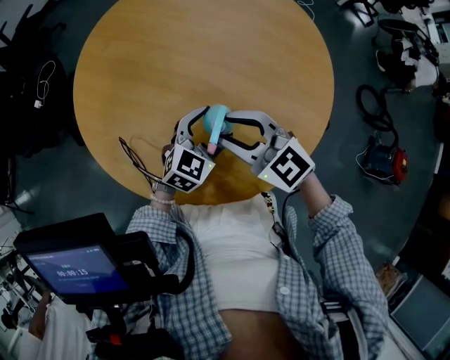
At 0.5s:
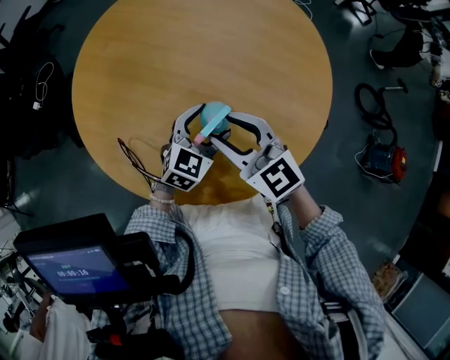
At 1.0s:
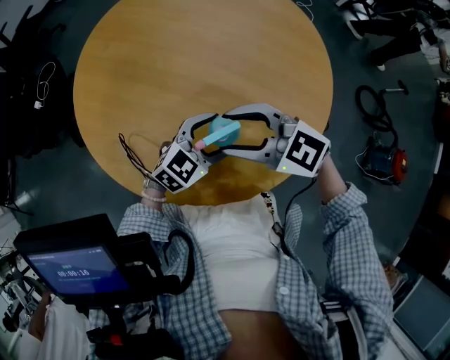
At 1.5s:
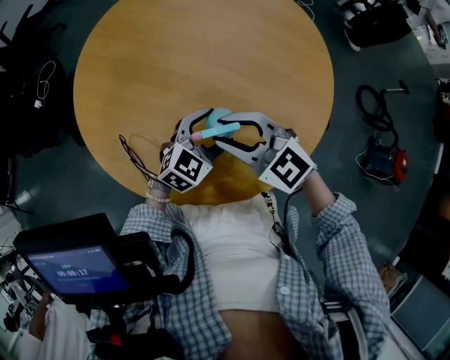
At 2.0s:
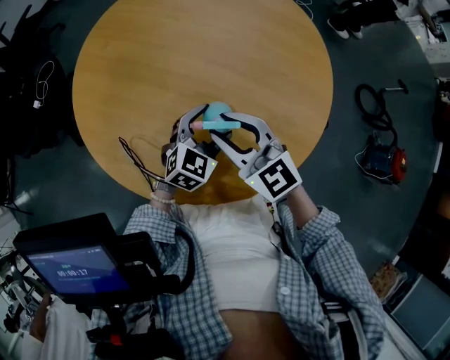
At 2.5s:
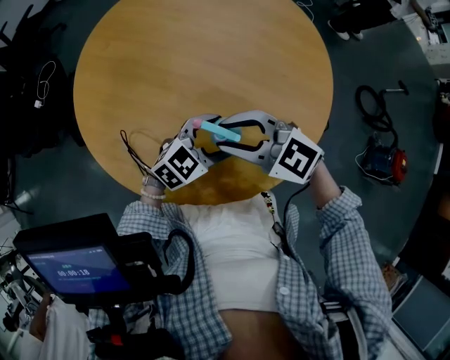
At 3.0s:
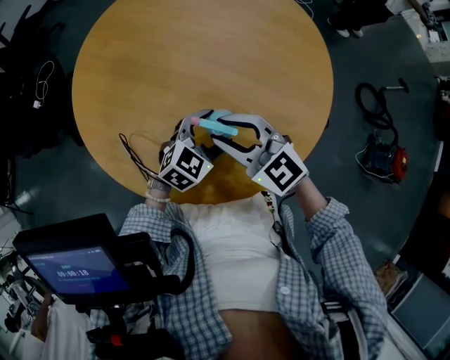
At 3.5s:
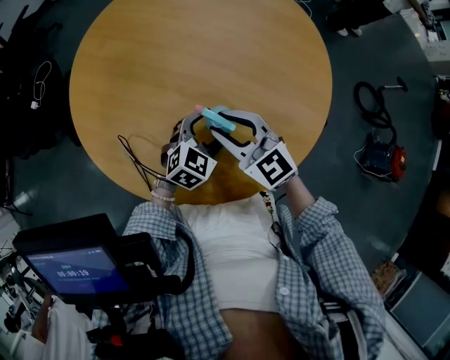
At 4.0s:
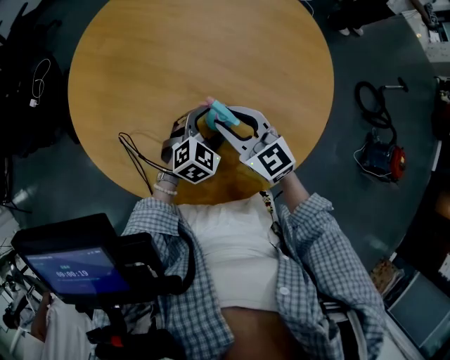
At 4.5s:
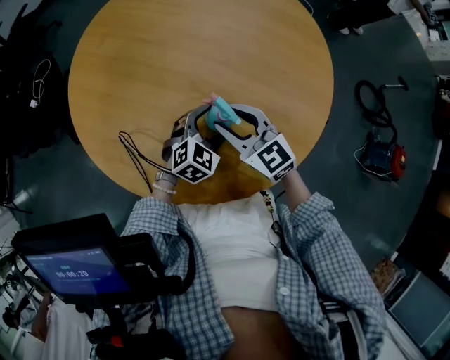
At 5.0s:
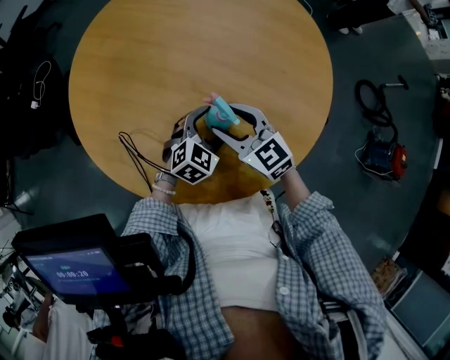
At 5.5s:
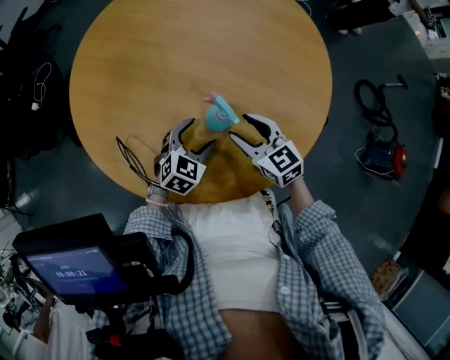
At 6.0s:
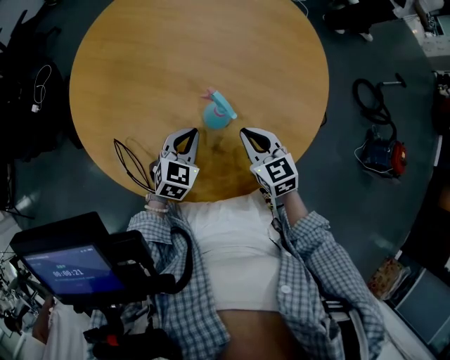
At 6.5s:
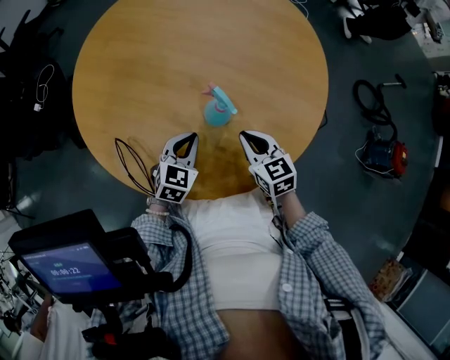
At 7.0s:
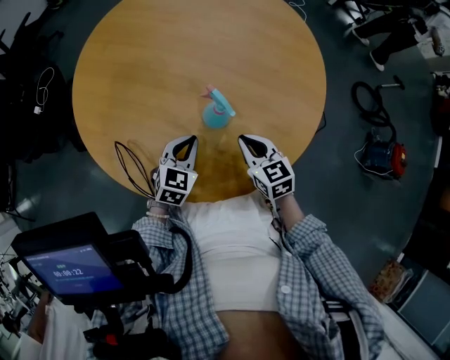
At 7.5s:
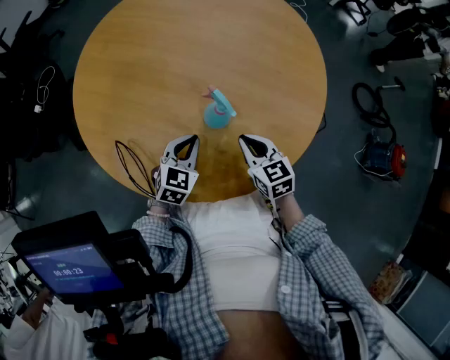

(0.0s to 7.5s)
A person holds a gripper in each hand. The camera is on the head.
0.0s - 2.0s: The right gripper opens, then closes again.
2.0s - 4.0s: The right gripper travels downward by about 5 cm. Meanwhile the left gripper moves some 5 cm.
4.0s - 5.5s: The right gripper is displaced downward and to the right by approximately 10 cm, and opens up. Meanwhile the left gripper ends up approximately 5 cm from where it was.
5.5s - 7.5s: The right gripper closes its fingers. The left gripper closes its fingers.

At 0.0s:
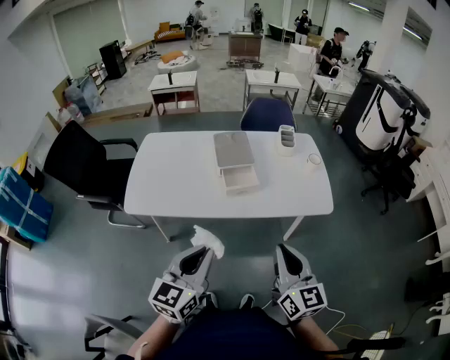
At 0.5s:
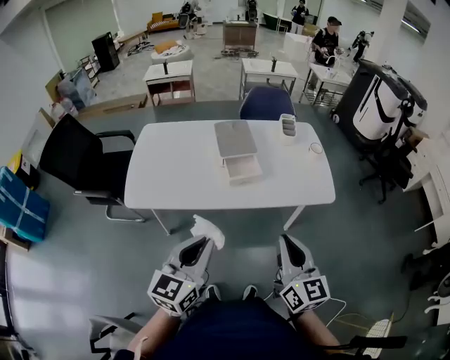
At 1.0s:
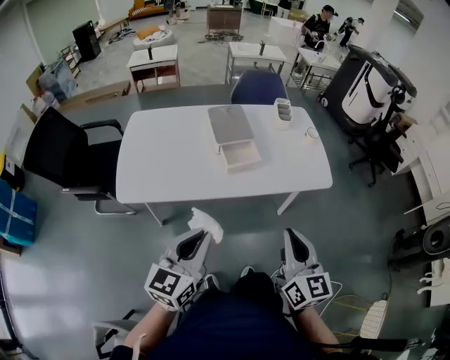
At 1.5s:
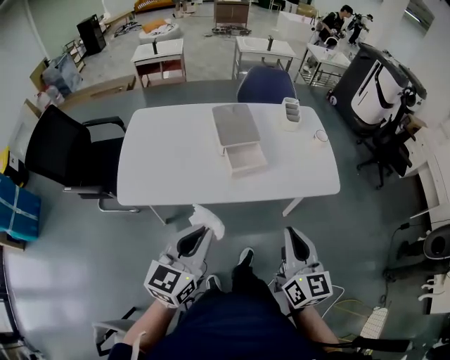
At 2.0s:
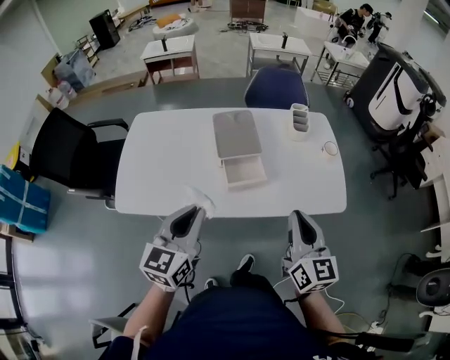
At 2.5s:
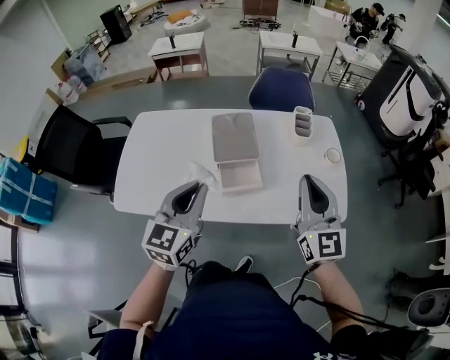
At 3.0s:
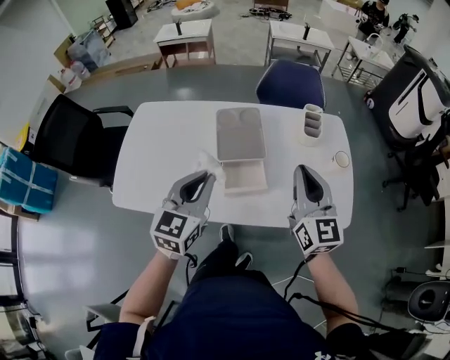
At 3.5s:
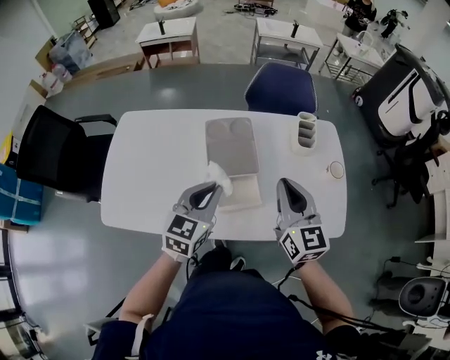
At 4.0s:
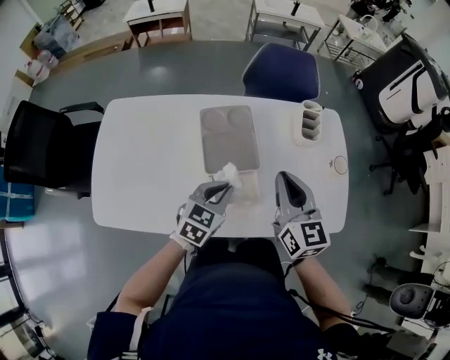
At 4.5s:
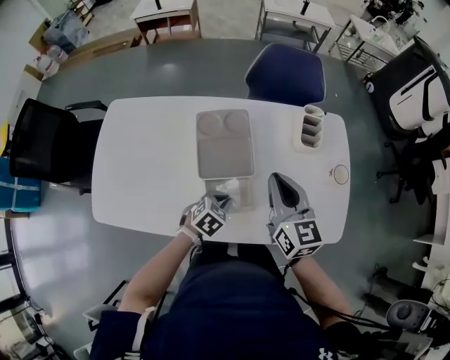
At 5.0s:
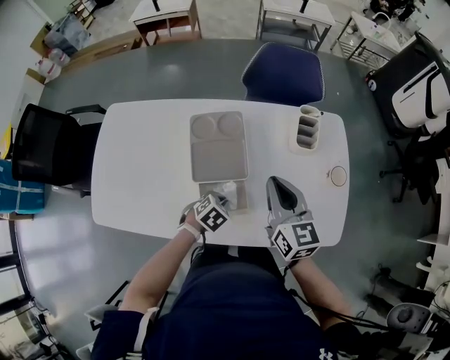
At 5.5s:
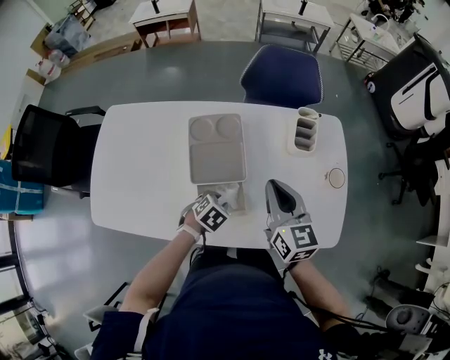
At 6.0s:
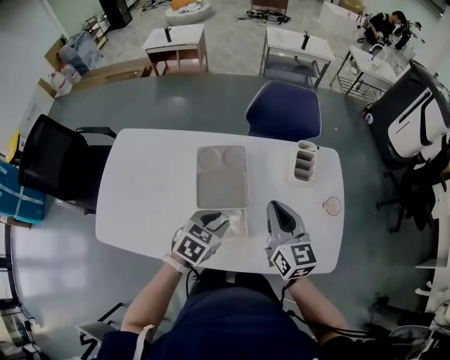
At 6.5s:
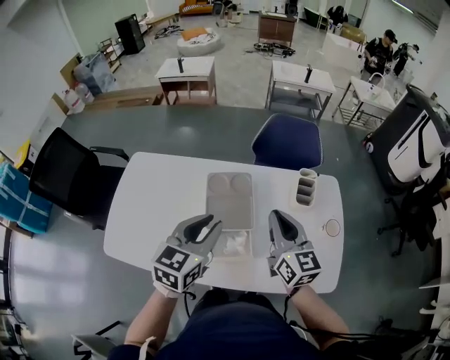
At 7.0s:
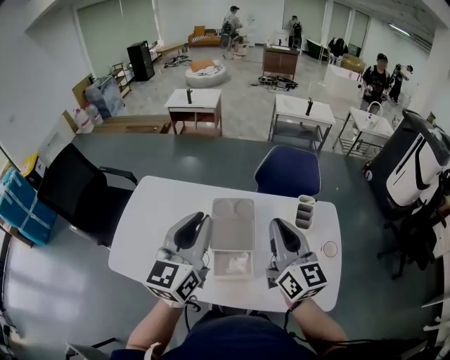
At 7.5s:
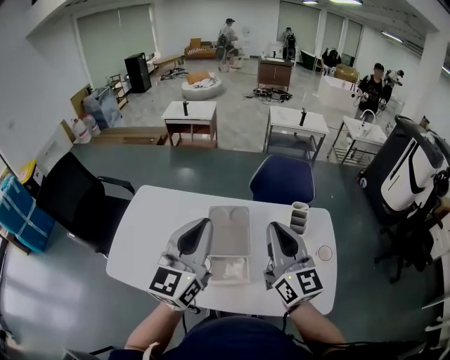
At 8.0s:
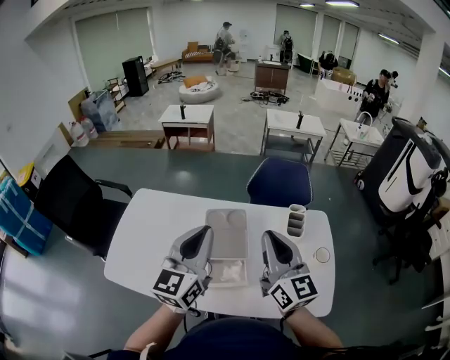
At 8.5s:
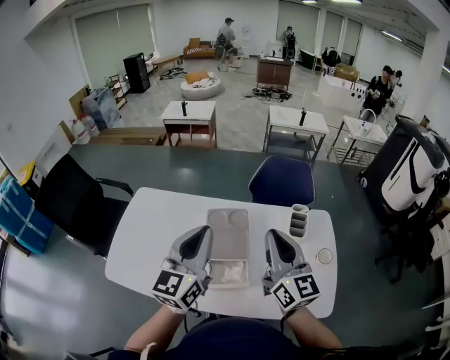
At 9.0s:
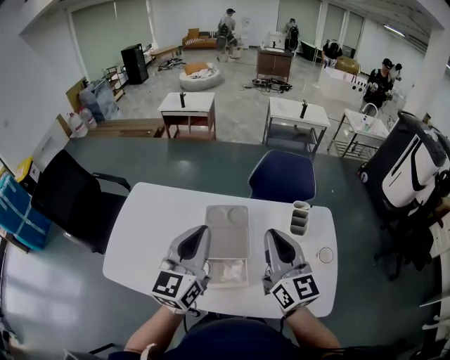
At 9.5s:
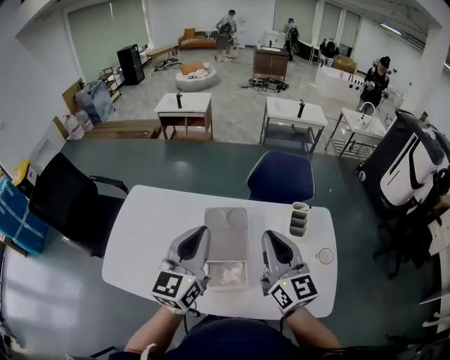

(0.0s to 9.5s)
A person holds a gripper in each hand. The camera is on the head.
0.0s - 2.0s: Both grippers move forward, some 20 cm.
2.0s - 4.0s: The left gripper is displaced forward and downward by about 30 cm, and turns by some 30 degrees, while the right gripper goes roughly 25 cm forward.
4.0s - 5.5s: The right gripper moves about 5 cm. Meanwhile the left gripper moves downward, approximately 15 cm, tilts its fingers about 40 degrees downward, and opens.
5.5s - 7.5s: The right gripper heads upward, covering roughly 20 cm, and swivels roughly 30 degrees. The left gripper goes some 50 cm upward, angles its fingers upward, by approximately 80 degrees, and closes.
7.5s - 9.5s: The left gripper travels downward and forward by roughly 10 cm, while the right gripper changes place by some 5 cm.

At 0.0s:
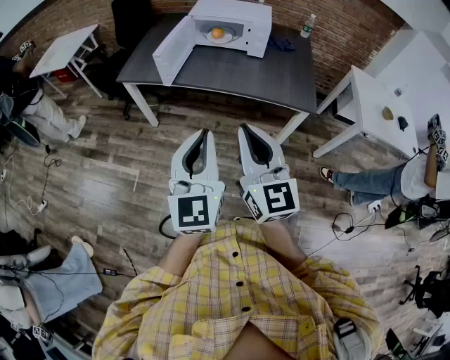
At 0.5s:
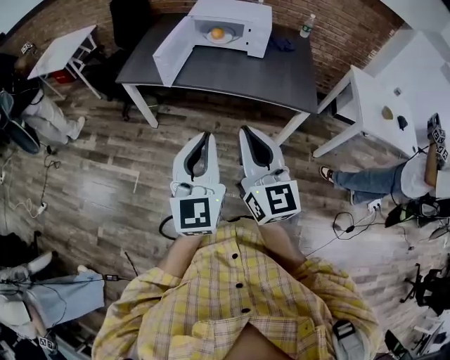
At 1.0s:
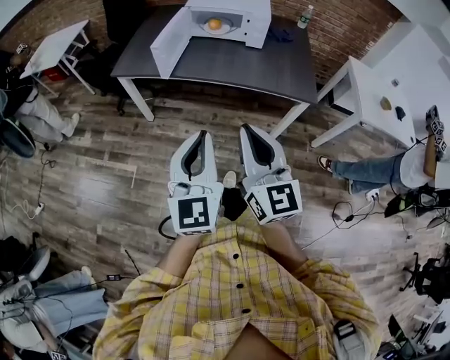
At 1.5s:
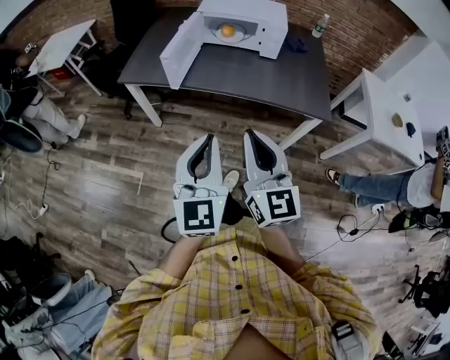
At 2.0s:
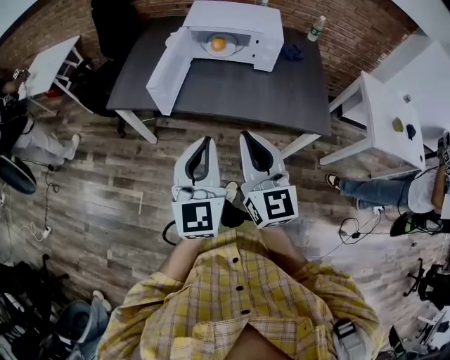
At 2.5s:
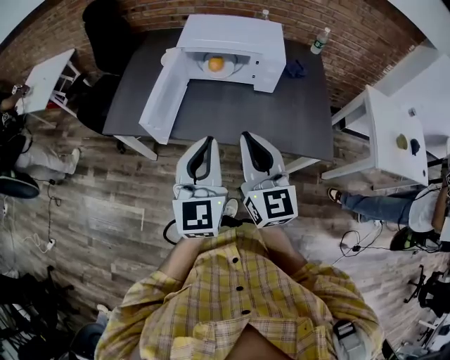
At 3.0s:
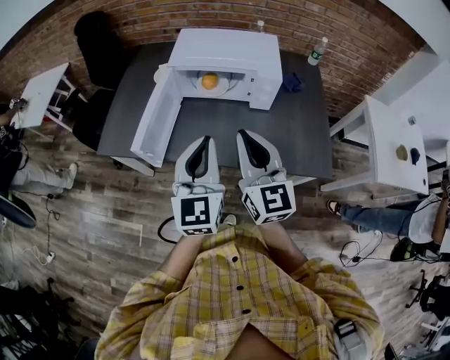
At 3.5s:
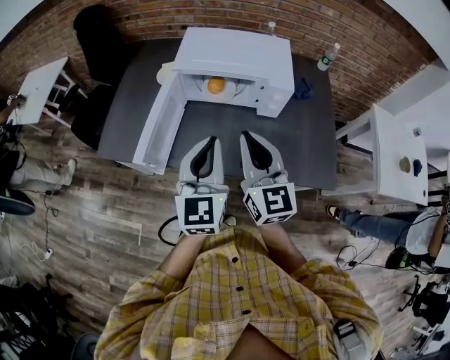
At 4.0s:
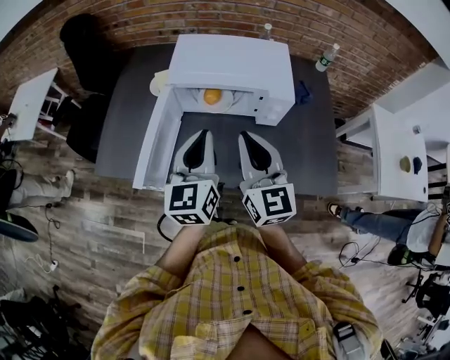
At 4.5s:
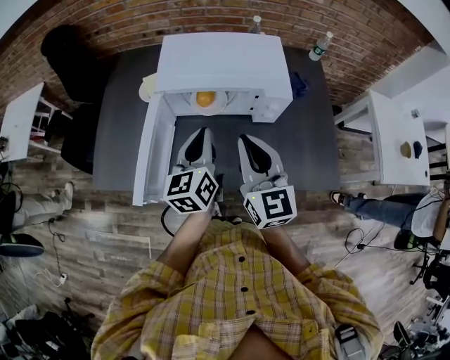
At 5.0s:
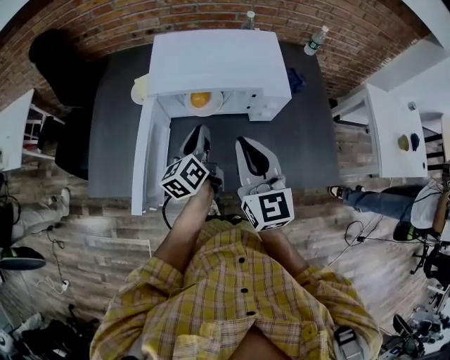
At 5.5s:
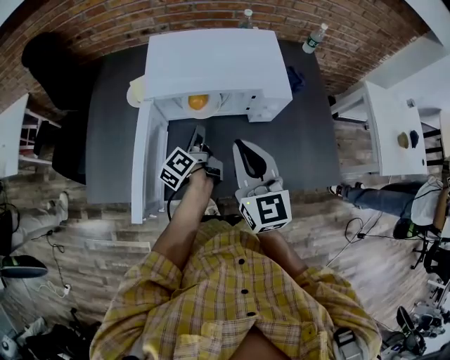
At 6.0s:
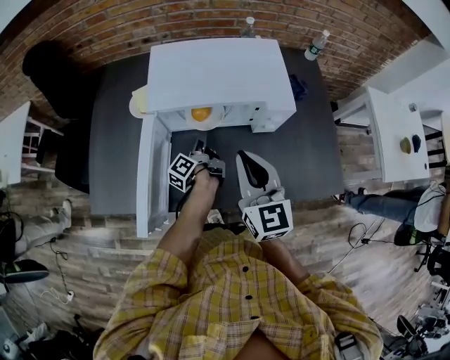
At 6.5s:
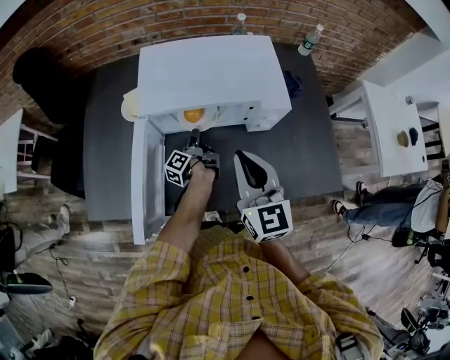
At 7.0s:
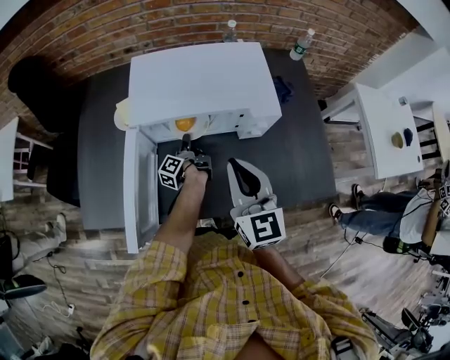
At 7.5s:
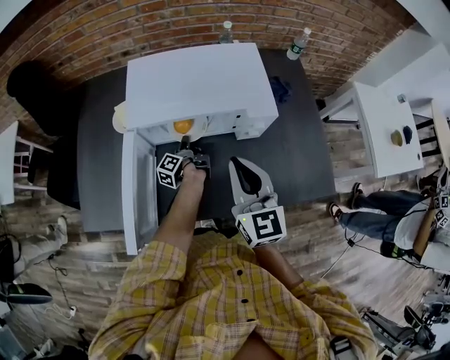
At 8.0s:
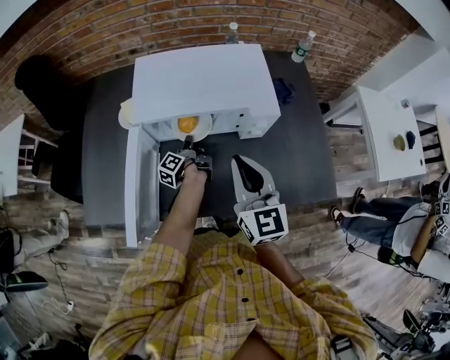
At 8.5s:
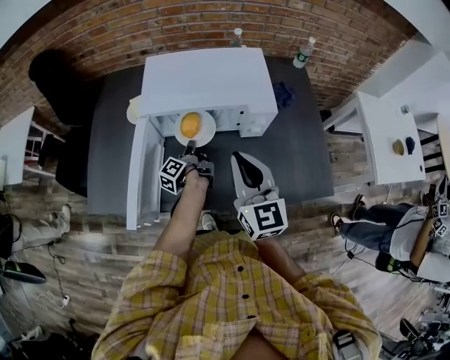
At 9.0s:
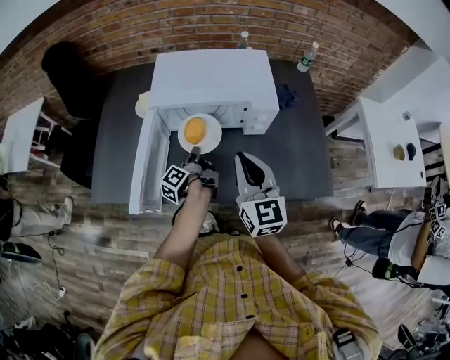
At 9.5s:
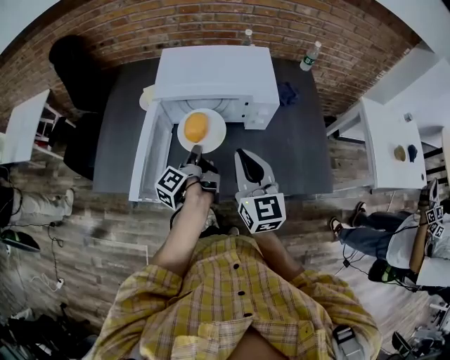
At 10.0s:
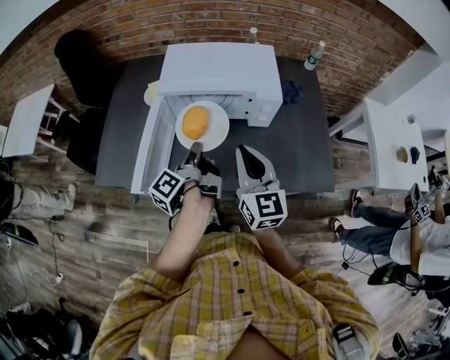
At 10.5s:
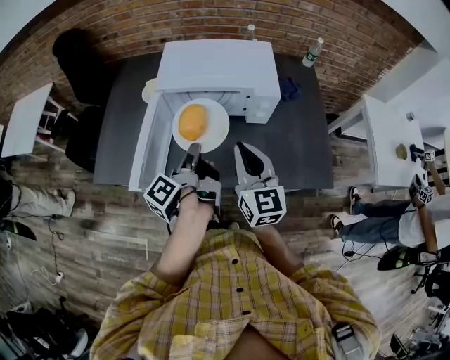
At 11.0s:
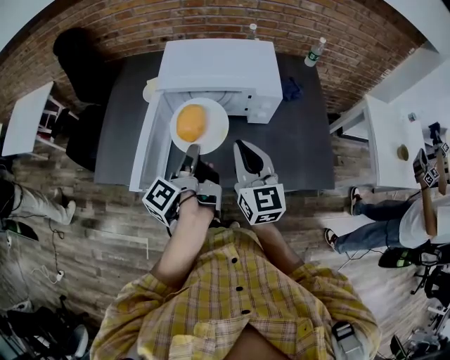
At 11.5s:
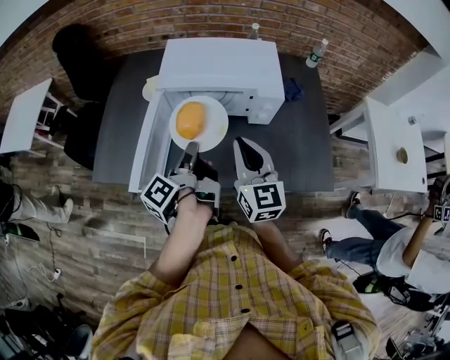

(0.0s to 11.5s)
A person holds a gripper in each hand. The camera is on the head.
0.0s - 2.0s: Both grippers travel together forward, some 20 cm.
2.0s - 4.0s: The two grippers go some 35 cm forward.
4.0s - 6.0s: The right gripper moves downward and forward, approximately 10 cm; the left gripper heads downward and forward, covering about 35 cm, rolls counterclockwise, seen from behind, by some 70 degrees, and opens up.
6.0s - 7.5s: The left gripper moves downward and forward, about 5 cm, and closes its fingers.
7.5s - 9.5s: The left gripper is displaced backward and upward by approximately 25 cm. Meanwhile the right gripper travels backward by some 10 cm.
9.5s - 11.5s: The left gripper is displaced upward by some 10 cm.
